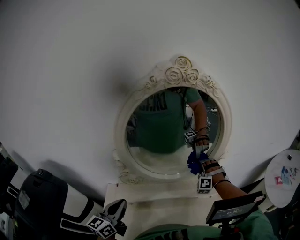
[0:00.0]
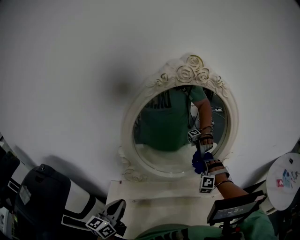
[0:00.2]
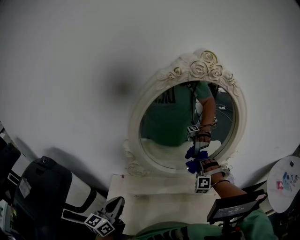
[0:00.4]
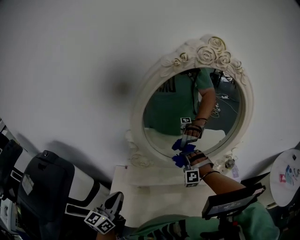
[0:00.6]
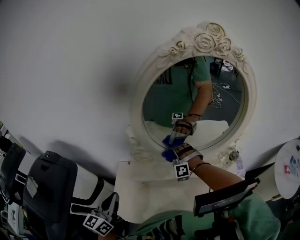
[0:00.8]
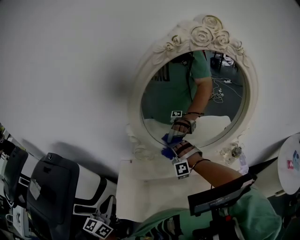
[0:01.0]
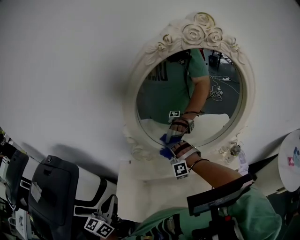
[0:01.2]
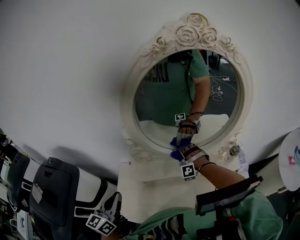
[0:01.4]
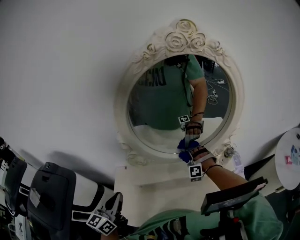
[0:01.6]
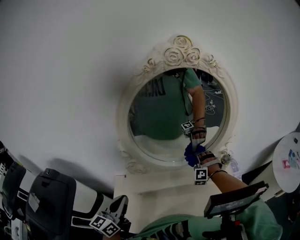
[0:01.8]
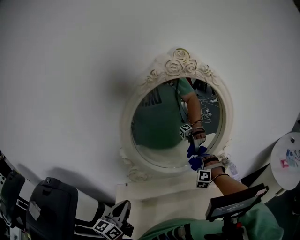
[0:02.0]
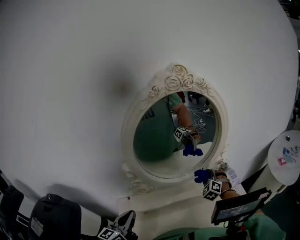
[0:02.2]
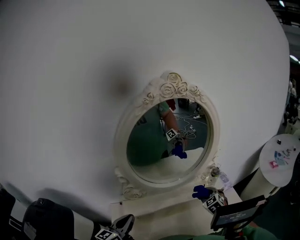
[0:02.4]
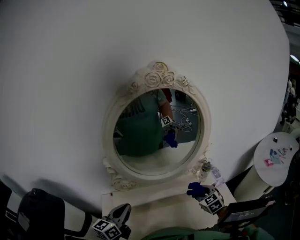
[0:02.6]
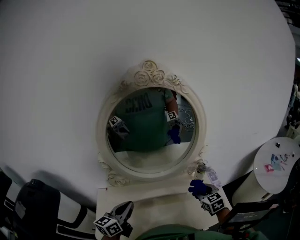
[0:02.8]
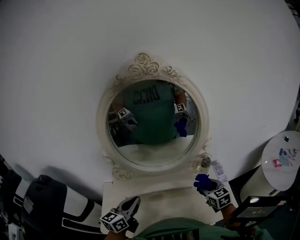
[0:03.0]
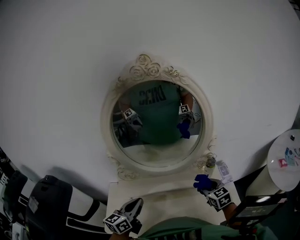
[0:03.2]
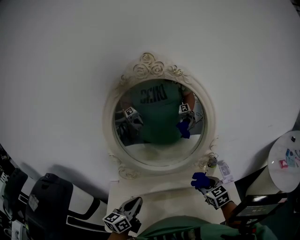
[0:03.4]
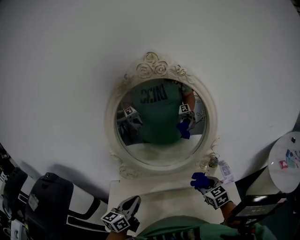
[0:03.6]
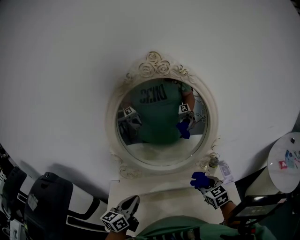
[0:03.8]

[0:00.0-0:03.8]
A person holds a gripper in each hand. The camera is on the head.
0:00.0 to 0:01.2: The left gripper moves some 10 cm.
0:01.2 to 0:02.6: The left gripper moves about 15 cm, and turns by about 30 degrees.

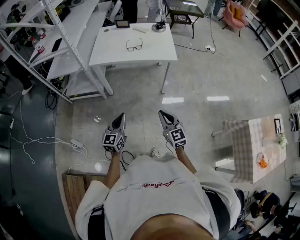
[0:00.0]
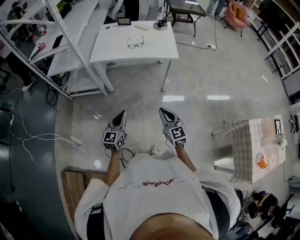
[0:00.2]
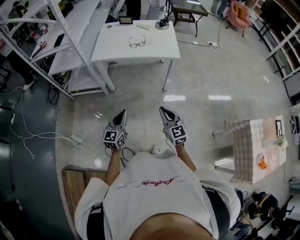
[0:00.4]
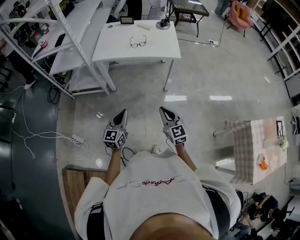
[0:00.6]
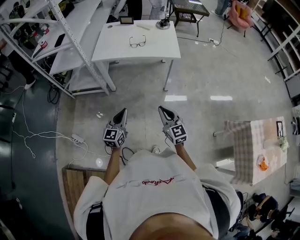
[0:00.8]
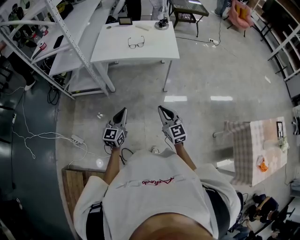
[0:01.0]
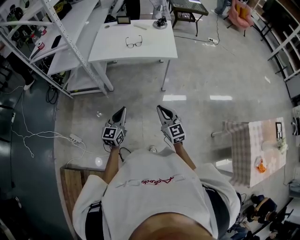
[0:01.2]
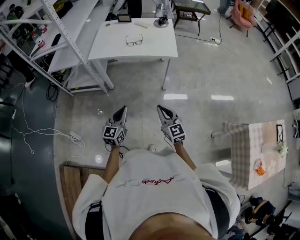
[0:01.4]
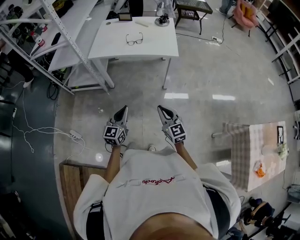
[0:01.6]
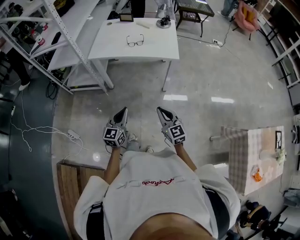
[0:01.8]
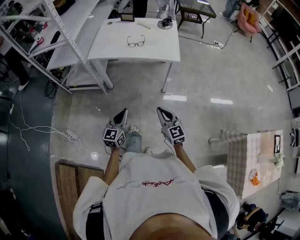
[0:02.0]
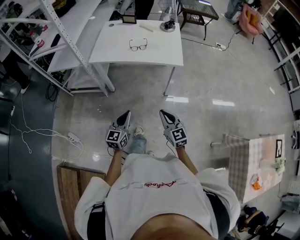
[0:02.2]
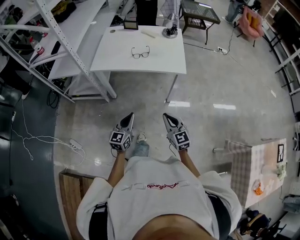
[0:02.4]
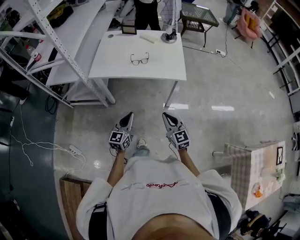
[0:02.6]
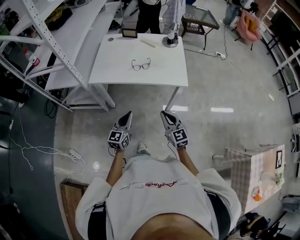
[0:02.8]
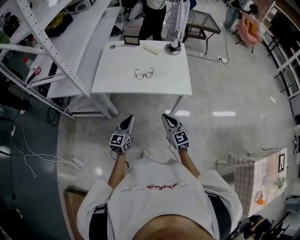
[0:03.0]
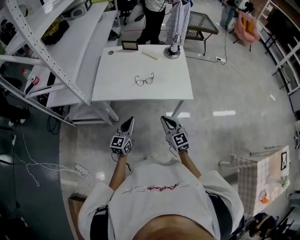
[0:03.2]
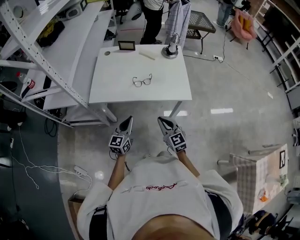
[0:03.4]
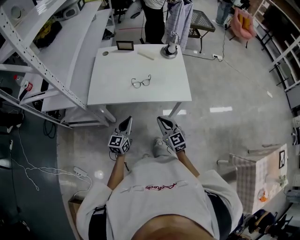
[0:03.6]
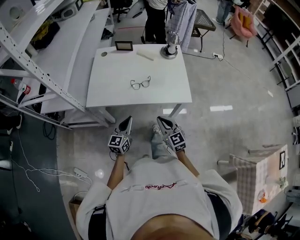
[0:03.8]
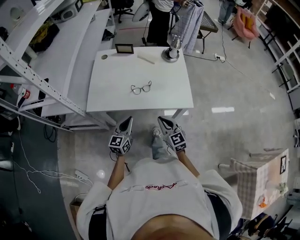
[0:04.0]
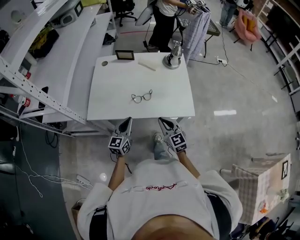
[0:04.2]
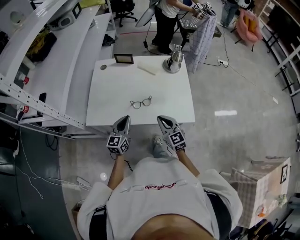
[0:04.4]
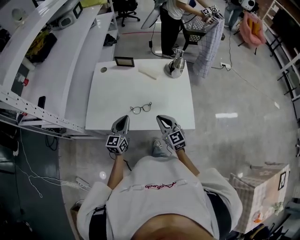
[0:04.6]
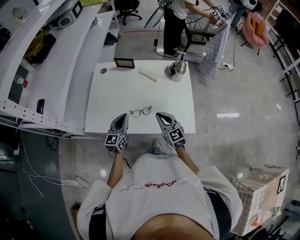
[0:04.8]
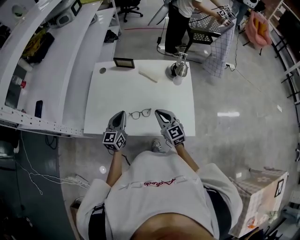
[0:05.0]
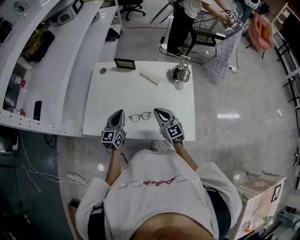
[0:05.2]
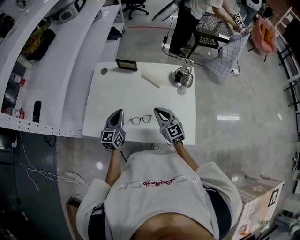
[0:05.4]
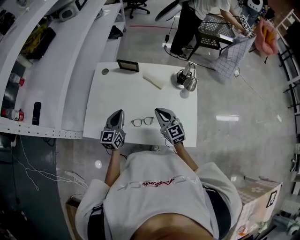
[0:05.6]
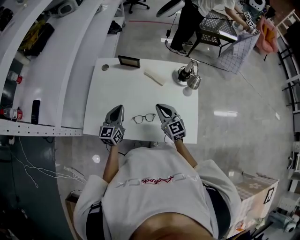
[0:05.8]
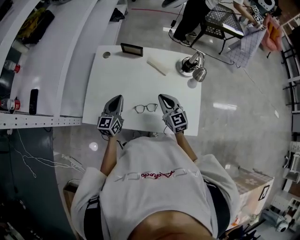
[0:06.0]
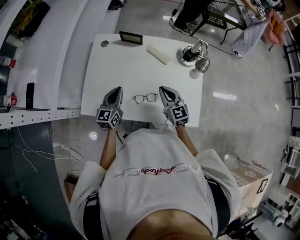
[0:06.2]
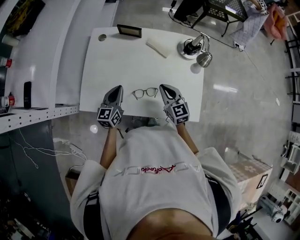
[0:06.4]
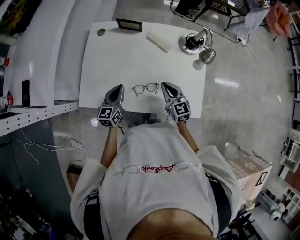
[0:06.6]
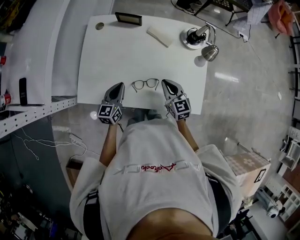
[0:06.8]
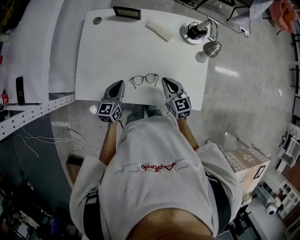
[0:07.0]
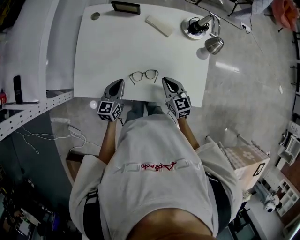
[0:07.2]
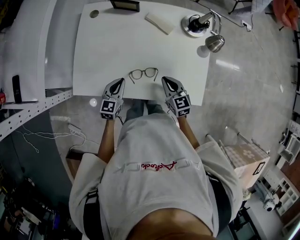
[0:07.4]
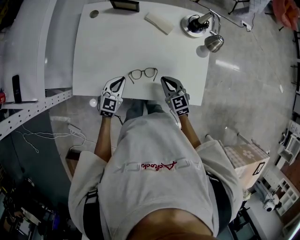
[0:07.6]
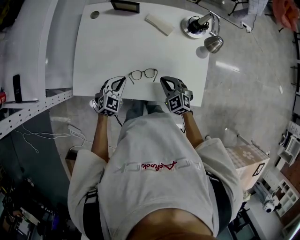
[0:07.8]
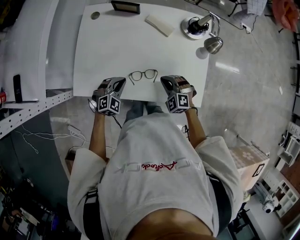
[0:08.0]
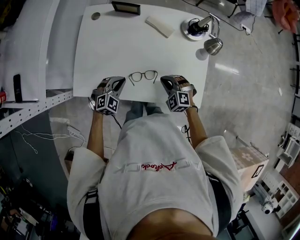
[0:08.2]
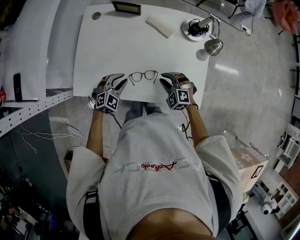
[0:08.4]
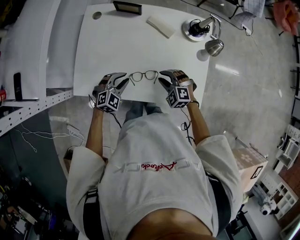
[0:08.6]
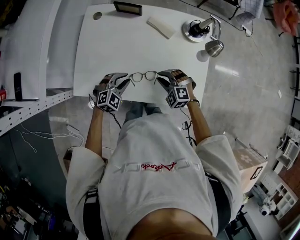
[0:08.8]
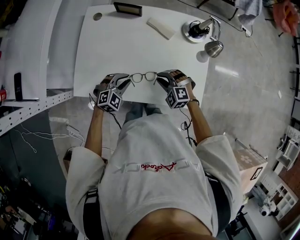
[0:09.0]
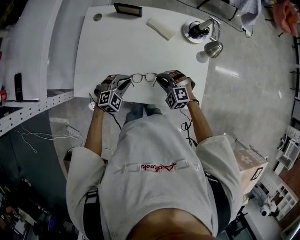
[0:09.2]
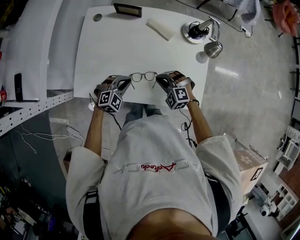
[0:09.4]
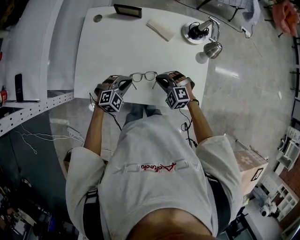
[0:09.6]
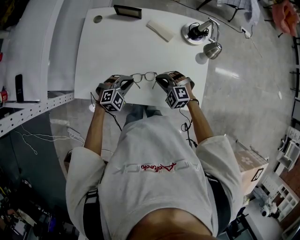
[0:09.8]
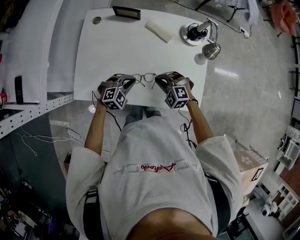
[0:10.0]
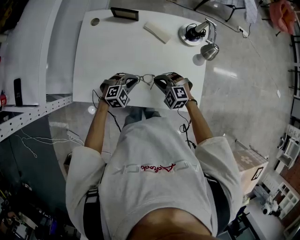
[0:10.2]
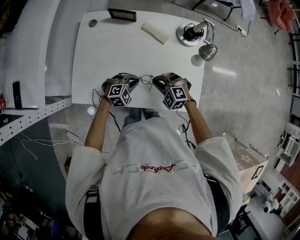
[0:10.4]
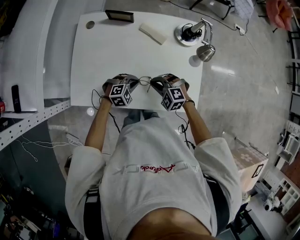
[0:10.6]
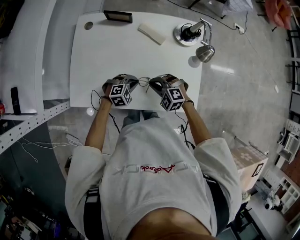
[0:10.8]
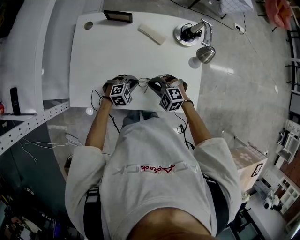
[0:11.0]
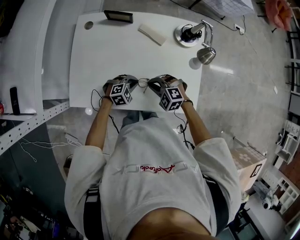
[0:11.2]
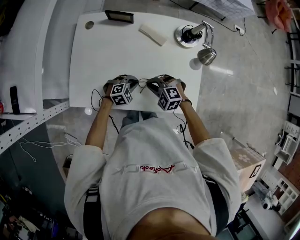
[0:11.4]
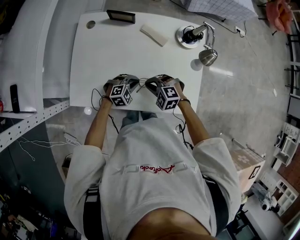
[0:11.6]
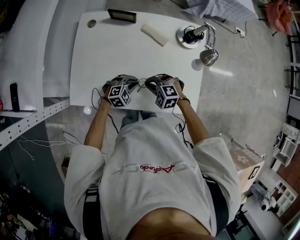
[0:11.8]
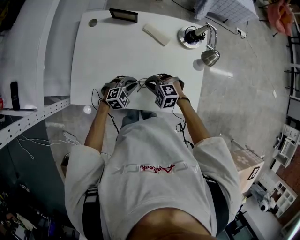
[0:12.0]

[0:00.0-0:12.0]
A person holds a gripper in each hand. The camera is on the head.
0:00.0 to 0:01.6: The left gripper goes approximately 5 cm to the right, while the right gripper ends up about 5 cm from where it was.
0:01.6 to 0:03.0: The grippers both shift forward by roughly 25 cm.
0:03.0 to 0:04.4: The two grippers go roughly 25 cm forward.
0:04.4 to 0:06.0: Both grippers move forward, about 15 cm.
0:06.0 to 0:07.6: Both grippers move downward and backward, roughly 15 cm. The left gripper rotates some 30 degrees.
0:07.6 to 0:09.0: The right gripper rotates around the line of its fingers by approximately 50 degrees, counterclockwise from behind. Meanwhile the left gripper swivels some 40 degrees, and opens its fingers.
0:09.0 to 0:10.4: The left gripper heads to the right, covering some 5 cm.
0:10.4 to 0:12.0: There are only small adjustments of the grippers.

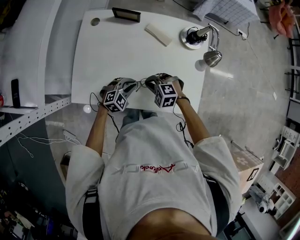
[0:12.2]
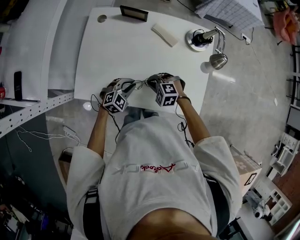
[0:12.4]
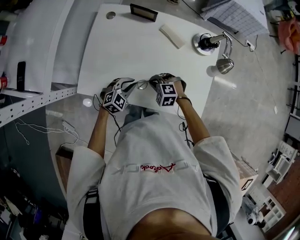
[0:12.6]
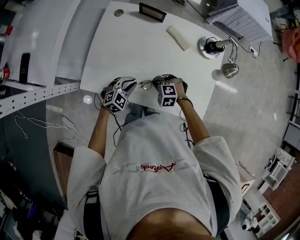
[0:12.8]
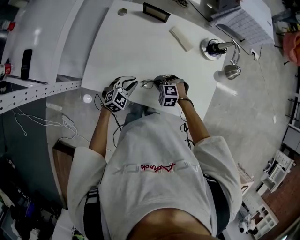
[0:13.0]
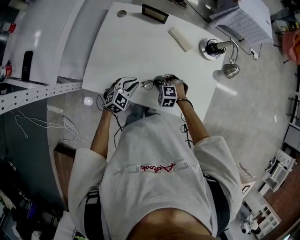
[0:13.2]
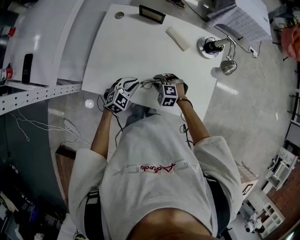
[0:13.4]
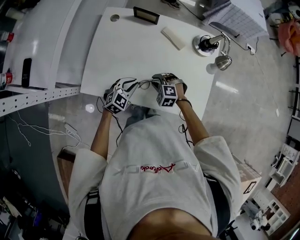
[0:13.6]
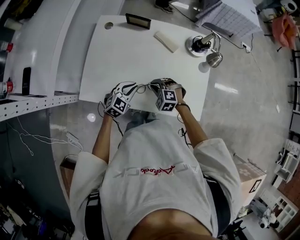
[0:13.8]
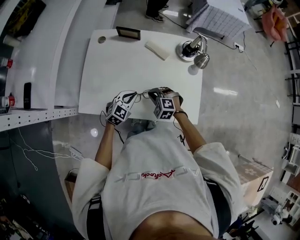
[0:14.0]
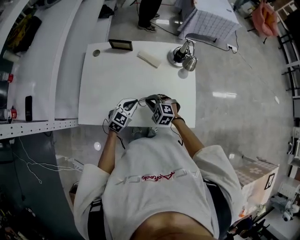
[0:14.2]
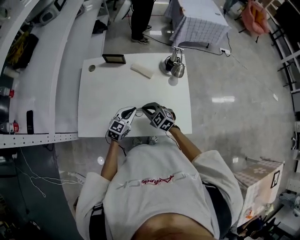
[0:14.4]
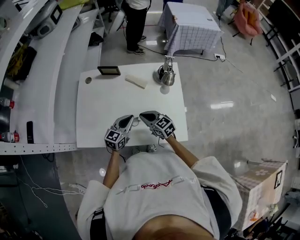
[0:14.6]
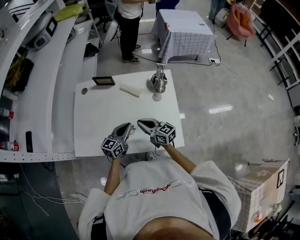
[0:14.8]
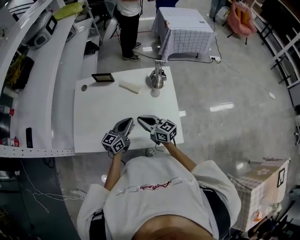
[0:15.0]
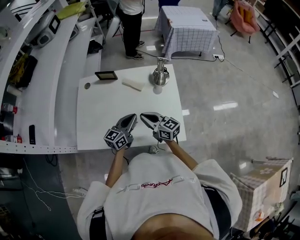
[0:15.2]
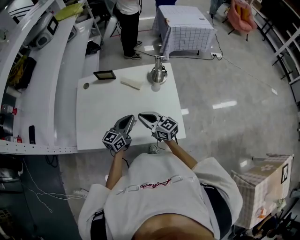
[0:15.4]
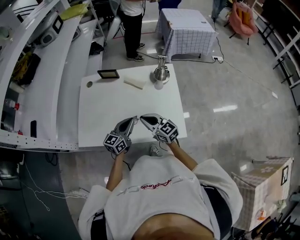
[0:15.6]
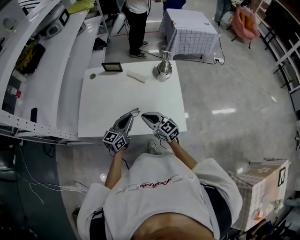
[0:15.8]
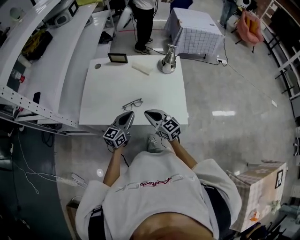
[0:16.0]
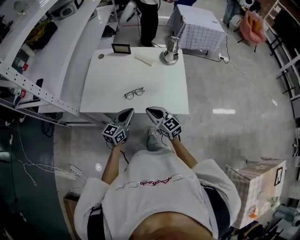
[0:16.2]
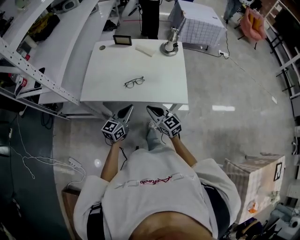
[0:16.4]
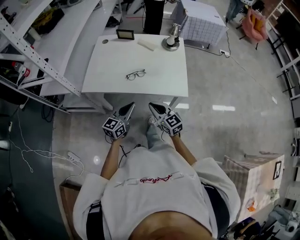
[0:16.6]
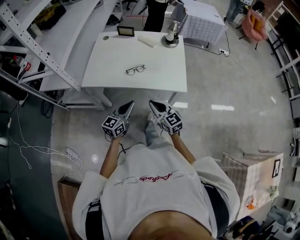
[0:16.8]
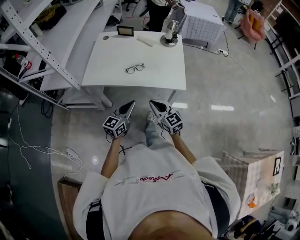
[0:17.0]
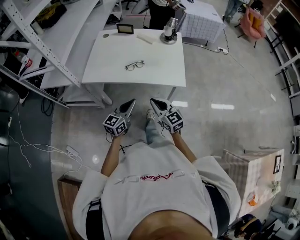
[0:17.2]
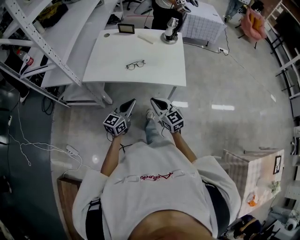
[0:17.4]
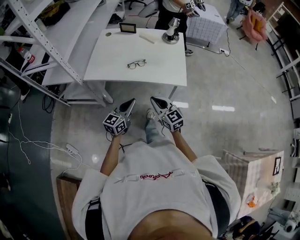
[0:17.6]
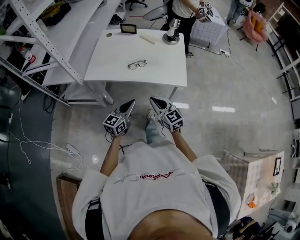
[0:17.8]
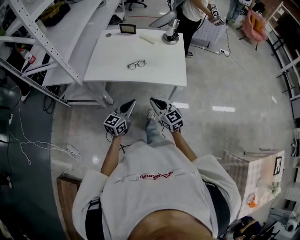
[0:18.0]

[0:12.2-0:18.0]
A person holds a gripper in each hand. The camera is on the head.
0:12.2 to 0:13.6: The left gripper shifts by about 5 cm, and turns by approximately 20 degrees. The right gripper opens.
0:13.6 to 0:15.0: The left gripper shifts some 15 cm to the right and upward, and tilts its fingers roughly 30 degrees upward, while the right gripper heads upward and to the right, covering roughly 20 cm, points its fingers roughly 60 degrees further upward, and closes up.
0:15.0 to 0:16.6: The two grippers go roughly 25 cm backward. The right gripper rotates approximately 20 degrees.
0:16.6 to 0:18.0: The two grippers go some 5 cm backward.

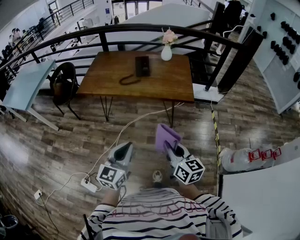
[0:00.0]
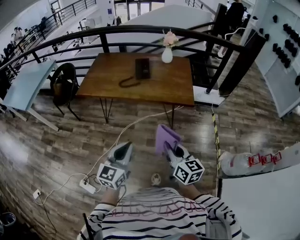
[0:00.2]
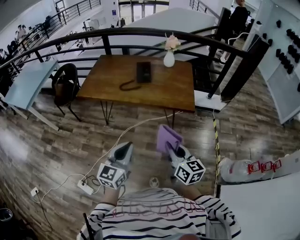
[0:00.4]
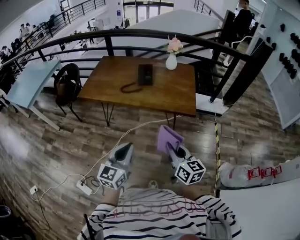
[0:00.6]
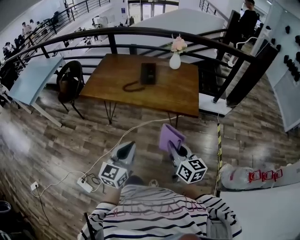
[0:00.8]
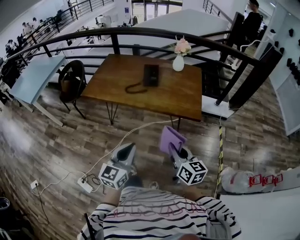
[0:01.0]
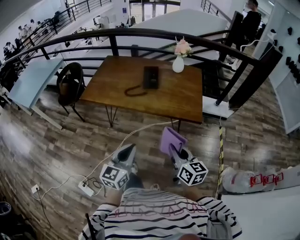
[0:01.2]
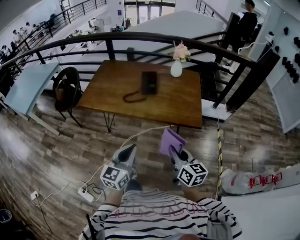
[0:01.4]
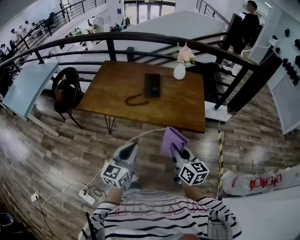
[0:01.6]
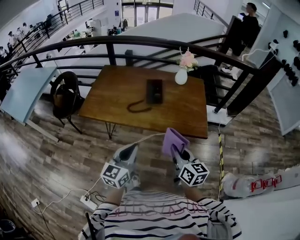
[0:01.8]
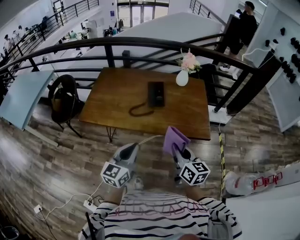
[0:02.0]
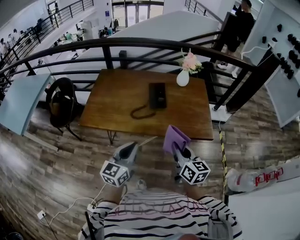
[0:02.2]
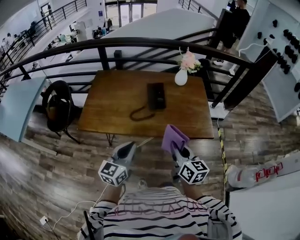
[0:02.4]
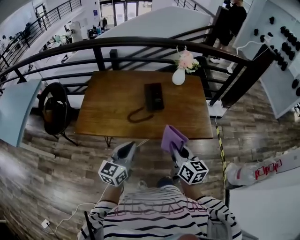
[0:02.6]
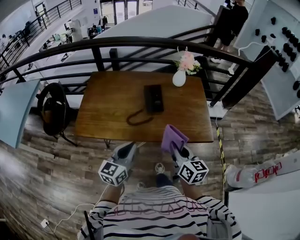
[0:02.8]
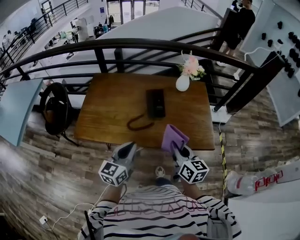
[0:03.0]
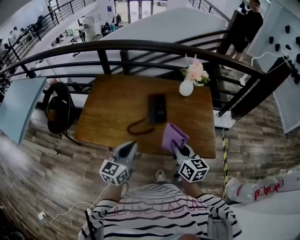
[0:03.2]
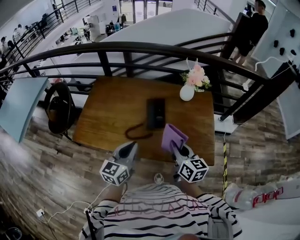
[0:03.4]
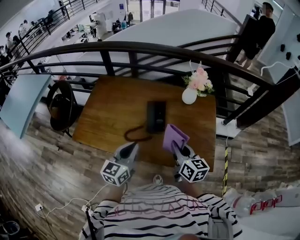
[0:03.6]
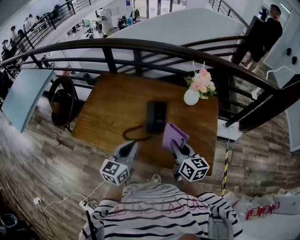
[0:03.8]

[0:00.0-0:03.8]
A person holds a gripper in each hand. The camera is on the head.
0:00.0 to 0:01.2: The two grippers go roughly 15 cm forward.
0:01.2 to 0:02.6: The grippers both shift forward and to the left by some 30 cm.
0:02.6 to 0:03.8: The left gripper travels forward and to the right by roughly 20 cm. Meanwhile the right gripper is displaced forward by about 25 cm.
